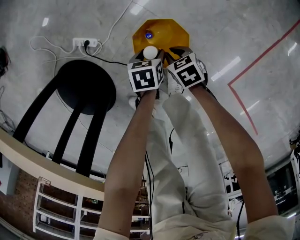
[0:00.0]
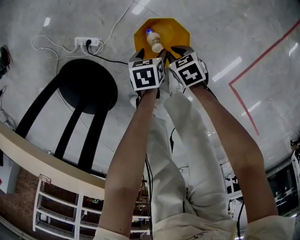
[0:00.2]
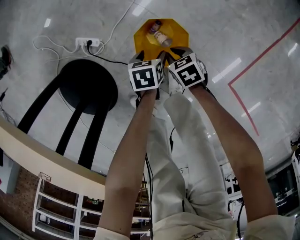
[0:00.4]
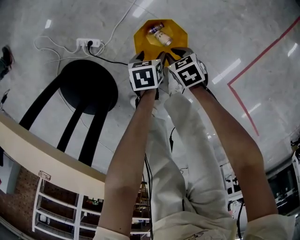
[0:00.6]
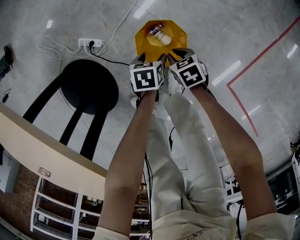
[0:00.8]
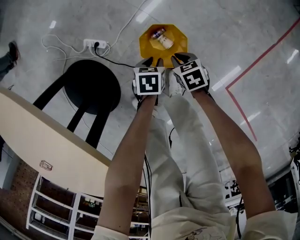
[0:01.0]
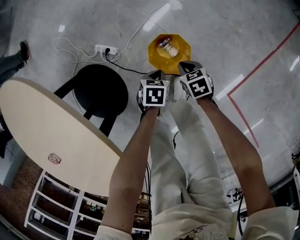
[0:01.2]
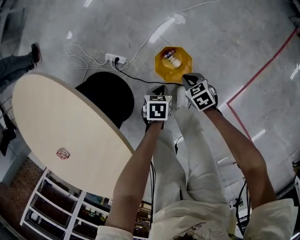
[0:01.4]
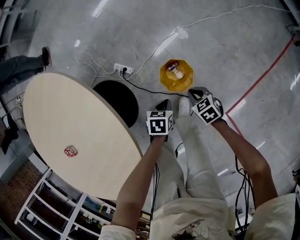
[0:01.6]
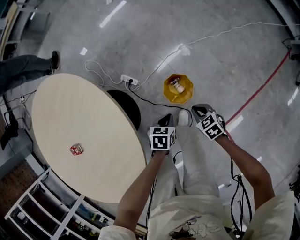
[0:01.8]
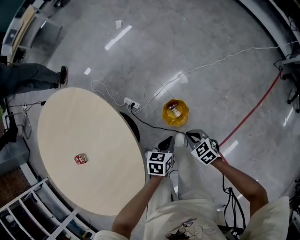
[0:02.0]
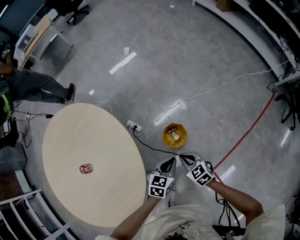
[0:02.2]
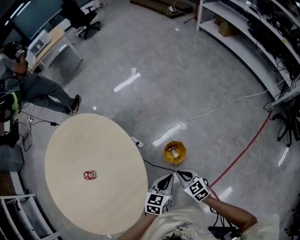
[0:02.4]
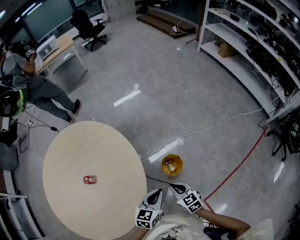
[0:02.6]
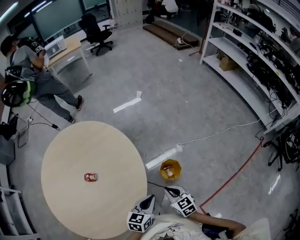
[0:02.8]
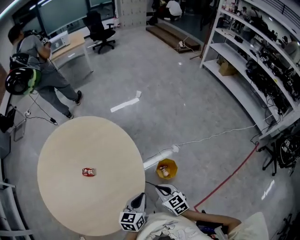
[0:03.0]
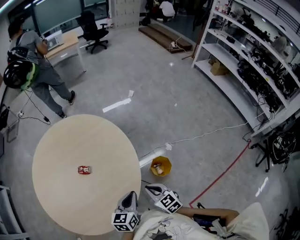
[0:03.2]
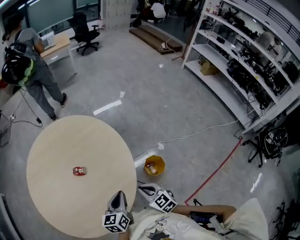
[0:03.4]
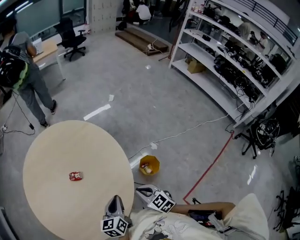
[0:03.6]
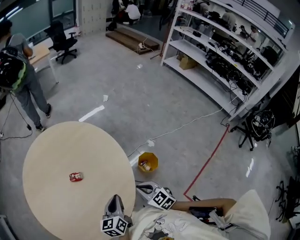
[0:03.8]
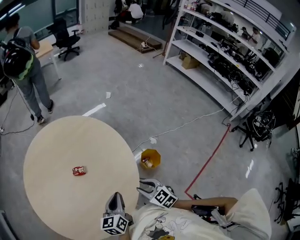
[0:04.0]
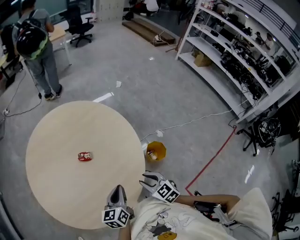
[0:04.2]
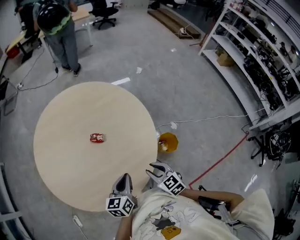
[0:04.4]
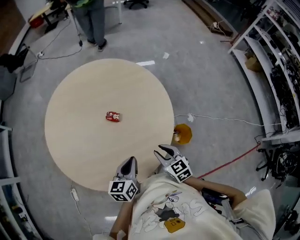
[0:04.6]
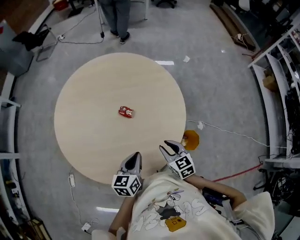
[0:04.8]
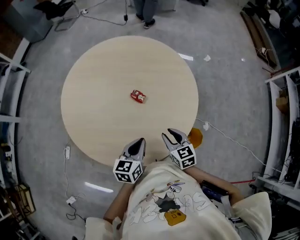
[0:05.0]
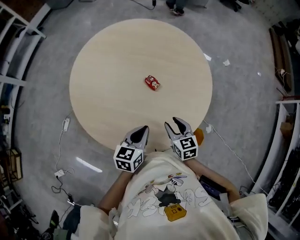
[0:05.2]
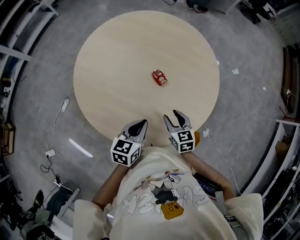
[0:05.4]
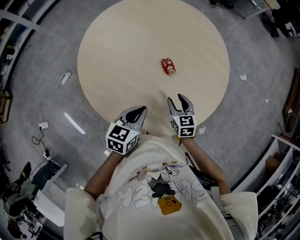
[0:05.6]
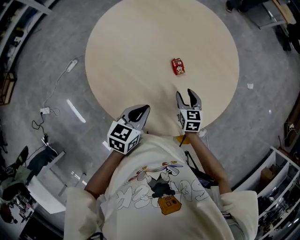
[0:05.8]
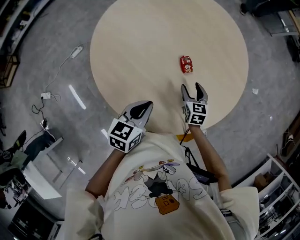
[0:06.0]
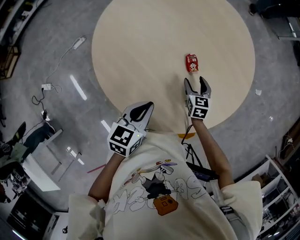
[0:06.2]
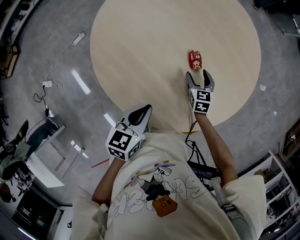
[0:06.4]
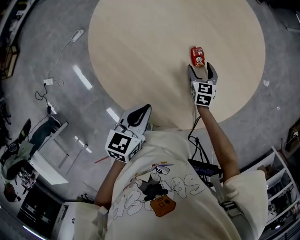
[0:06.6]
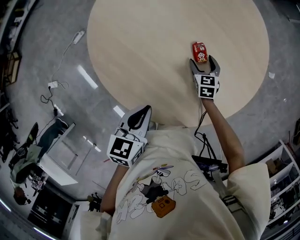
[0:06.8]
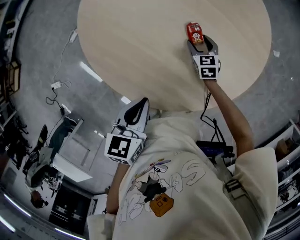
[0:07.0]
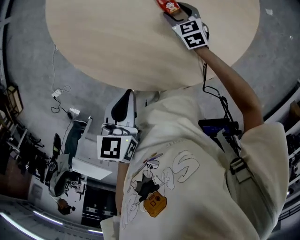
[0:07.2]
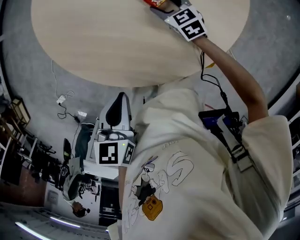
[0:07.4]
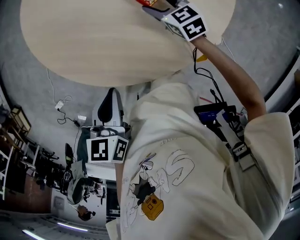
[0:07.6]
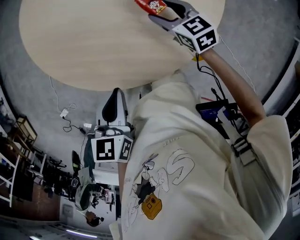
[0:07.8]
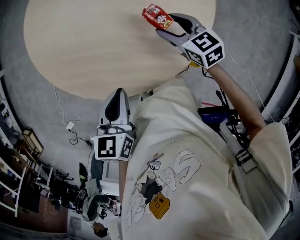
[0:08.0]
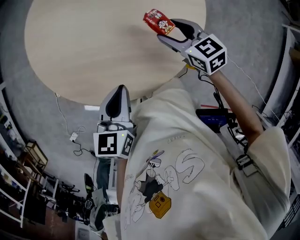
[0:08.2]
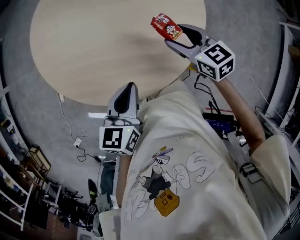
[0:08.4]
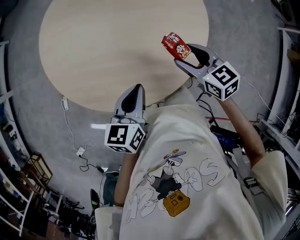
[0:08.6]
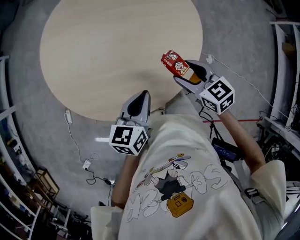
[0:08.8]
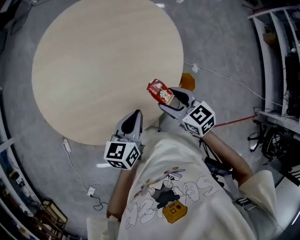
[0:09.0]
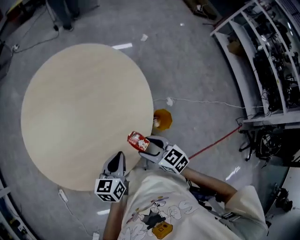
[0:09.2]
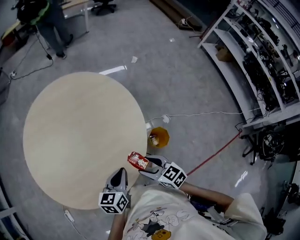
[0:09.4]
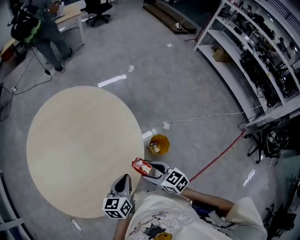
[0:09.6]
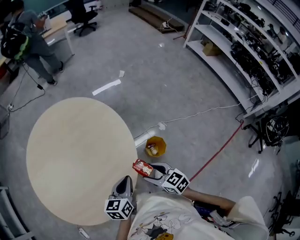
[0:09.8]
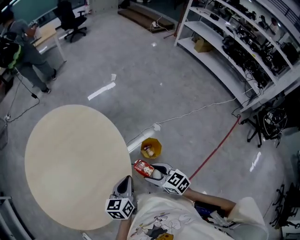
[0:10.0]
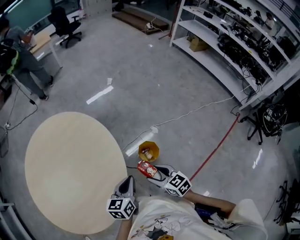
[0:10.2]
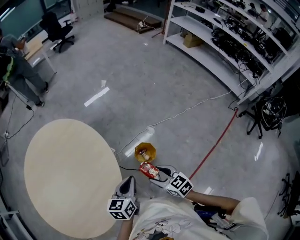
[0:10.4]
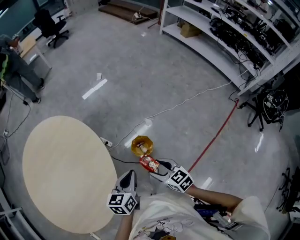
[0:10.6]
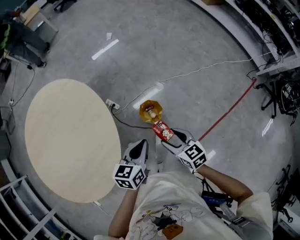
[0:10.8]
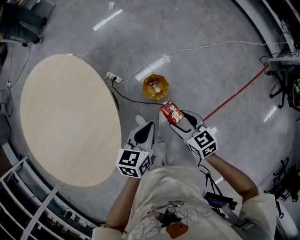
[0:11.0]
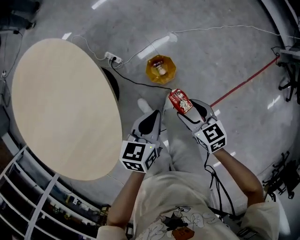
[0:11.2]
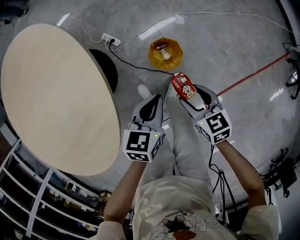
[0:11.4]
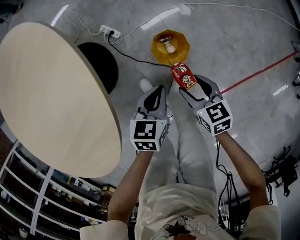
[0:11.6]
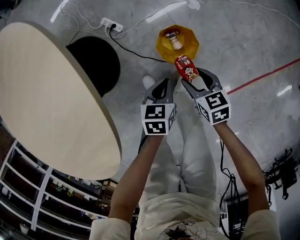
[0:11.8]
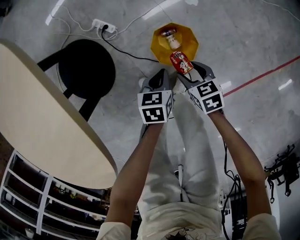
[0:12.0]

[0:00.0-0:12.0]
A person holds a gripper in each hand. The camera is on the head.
0:00.0 to 0:01.6: The grippers both shift upward by some 25 cm. The left gripper closes up.
0:01.6 to 0:03.0: The right gripper shifts approximately 50 cm upward and to the left, and rotates about 30 degrees. Meanwhile the left gripper shifts approximately 40 cm upward, and angles its fingers upward, by approximately 40 degrees.
0:03.0 to 0:04.4: The right gripper heads to the left and backward, covering roughly 15 cm. The left gripper is displaced to the left by about 20 cm.
0:04.4 to 0:06.0: The left gripper shifts by some 10 cm, and changes its angle by roughly 50 degrees, while the right gripper ends up about 30 cm from where it was, and turns by approximately 40 degrees.
0:06.0 to 0:07.6: The right gripper travels downward and back again, about 10 cm each way.
0:07.6 to 0:09.0: The right gripper ends up some 25 cm from where it was, and turns by approximately 30 degrees. Meanwhile the left gripper changes place by some 5 cm, and turns by about 40 degrees.
0:09.0 to 0:10.4: The left gripper ends up some 35 cm from where it was, and turns by roughly 30 degrees. Meanwhile the right gripper travels upward and back again, some 10 cm each way, and turns by roughly 30 degrees.
0:10.4 to 0:12.0: Both grippers move downward, roughly 50 cm. The right gripper swivels about 30 degrees. Meanwhile the left gripper points its fingers roughly 30 degrees further downward.

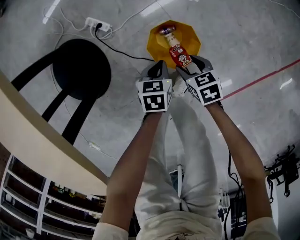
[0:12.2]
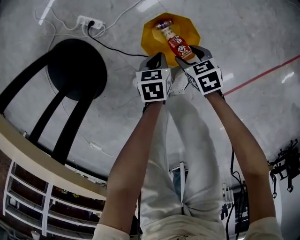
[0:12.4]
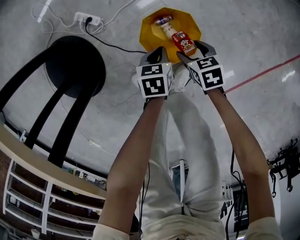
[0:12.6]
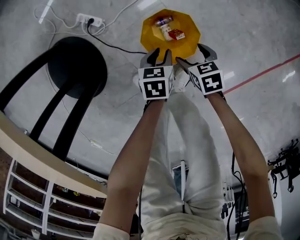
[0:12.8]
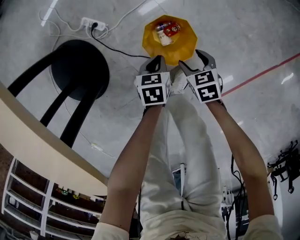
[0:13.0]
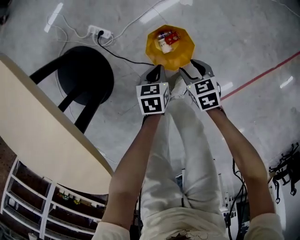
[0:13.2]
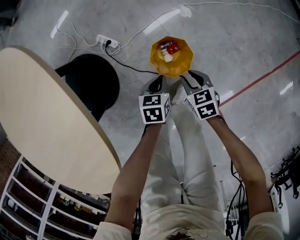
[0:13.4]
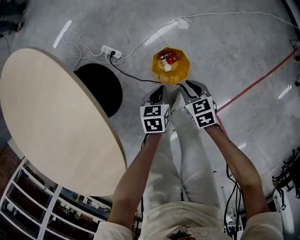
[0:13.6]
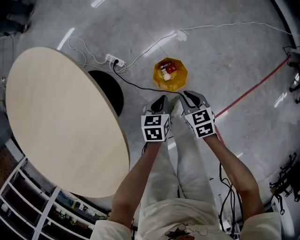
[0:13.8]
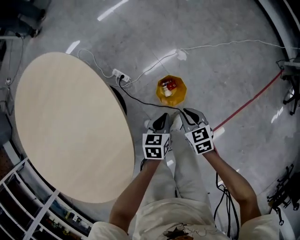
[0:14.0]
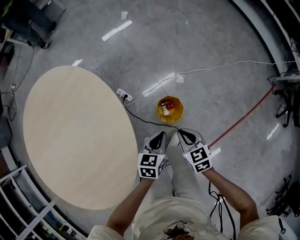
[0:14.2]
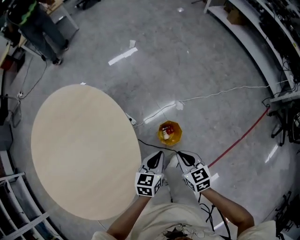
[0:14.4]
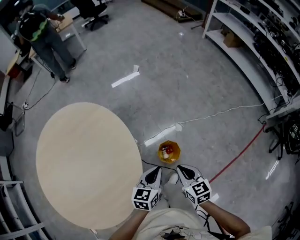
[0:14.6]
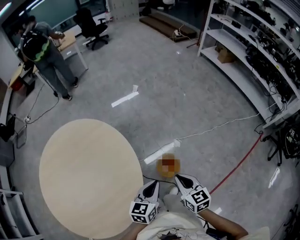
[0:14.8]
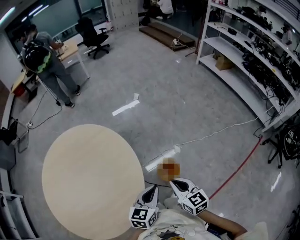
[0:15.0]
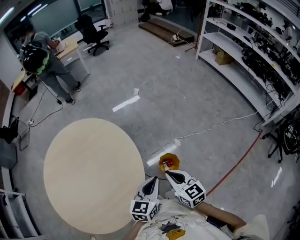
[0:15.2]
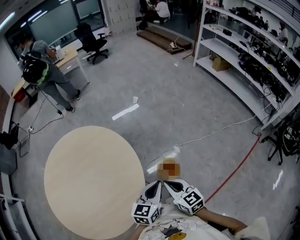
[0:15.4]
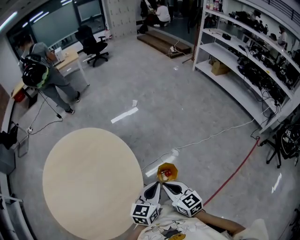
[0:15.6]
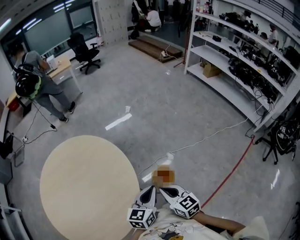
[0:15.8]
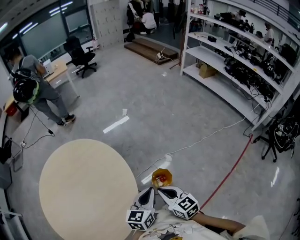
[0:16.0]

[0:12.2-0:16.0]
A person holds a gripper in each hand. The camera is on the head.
0:12.2 to 0:13.4: The grippers both shift upward by some 10 cm. The left gripper opens, then closes again.
0:13.4 to 0:14.8: Both grippers travel together upward, about 50 cm. The left gripper tips its fingers upward by about 30 degrees. The right gripper angles its fingers upward, by roughly 30 degrees.
0:14.8 to 0:16.0: The left gripper travels upward by roughly 5 cm, while the right gripper heads to the left and backward, covering about 10 cm.

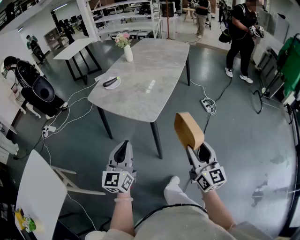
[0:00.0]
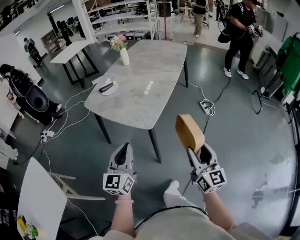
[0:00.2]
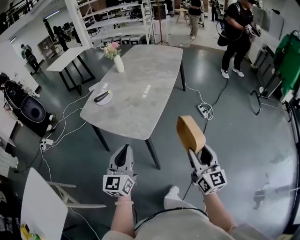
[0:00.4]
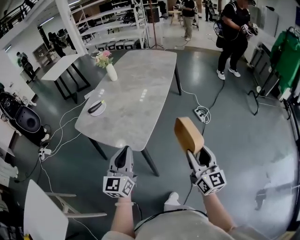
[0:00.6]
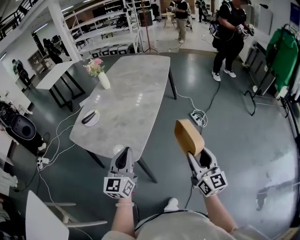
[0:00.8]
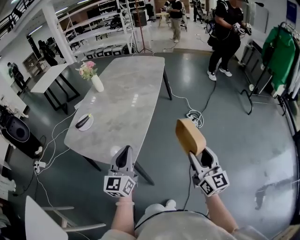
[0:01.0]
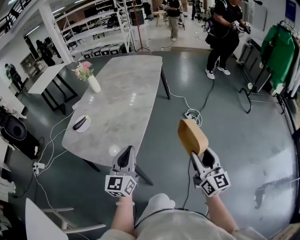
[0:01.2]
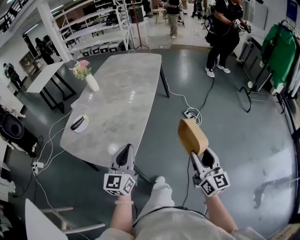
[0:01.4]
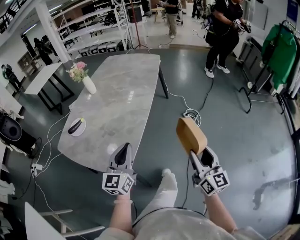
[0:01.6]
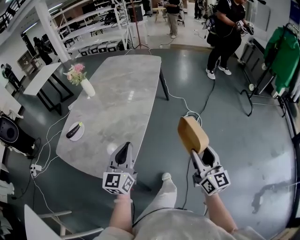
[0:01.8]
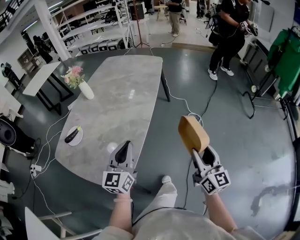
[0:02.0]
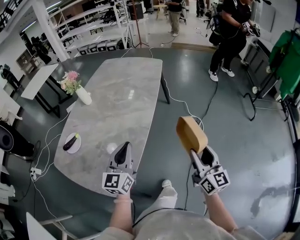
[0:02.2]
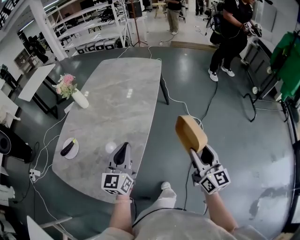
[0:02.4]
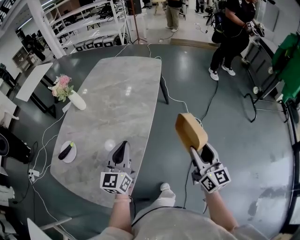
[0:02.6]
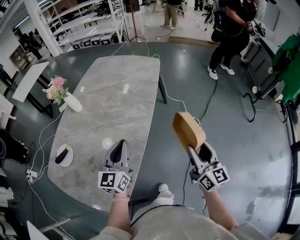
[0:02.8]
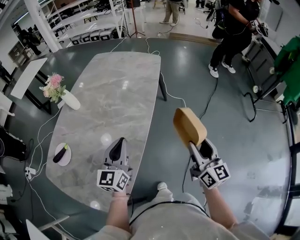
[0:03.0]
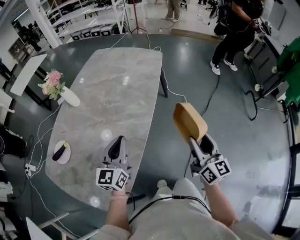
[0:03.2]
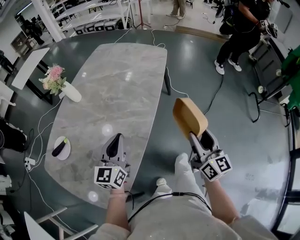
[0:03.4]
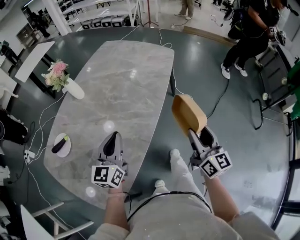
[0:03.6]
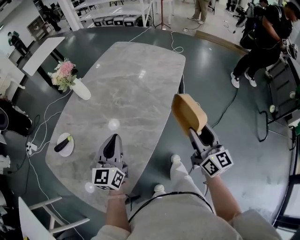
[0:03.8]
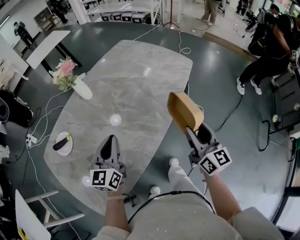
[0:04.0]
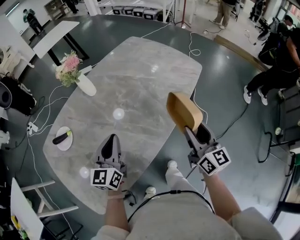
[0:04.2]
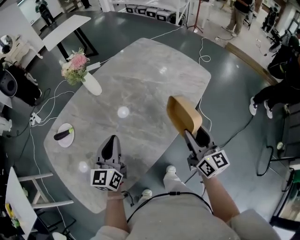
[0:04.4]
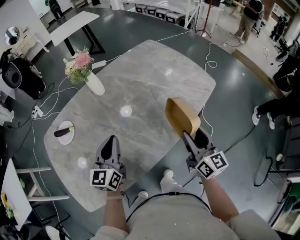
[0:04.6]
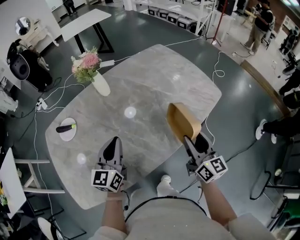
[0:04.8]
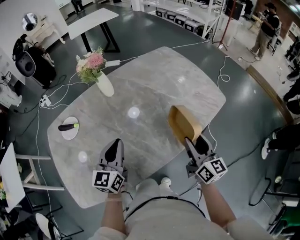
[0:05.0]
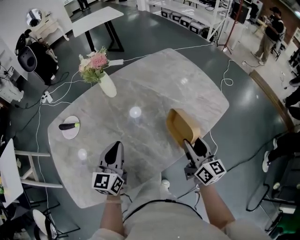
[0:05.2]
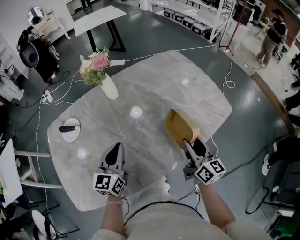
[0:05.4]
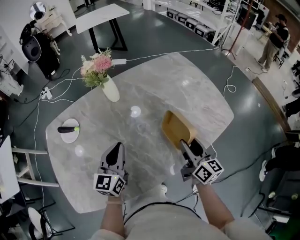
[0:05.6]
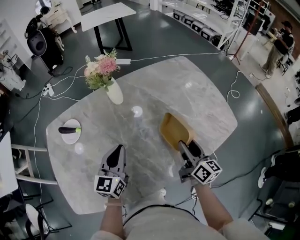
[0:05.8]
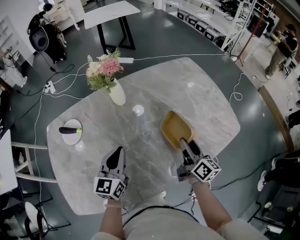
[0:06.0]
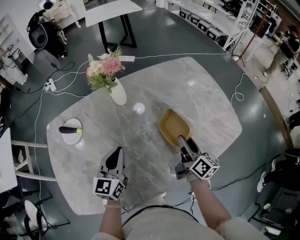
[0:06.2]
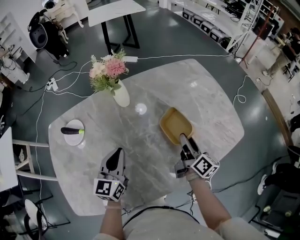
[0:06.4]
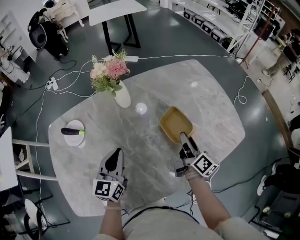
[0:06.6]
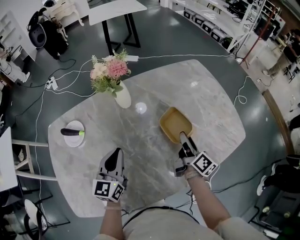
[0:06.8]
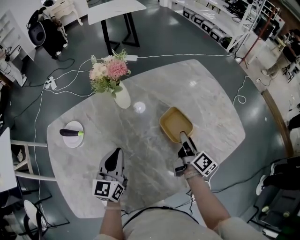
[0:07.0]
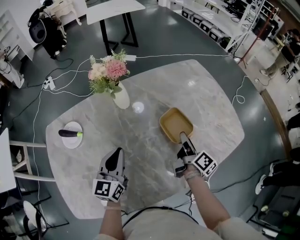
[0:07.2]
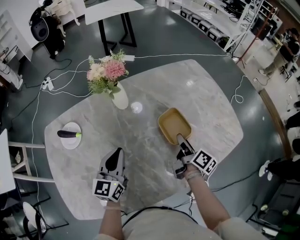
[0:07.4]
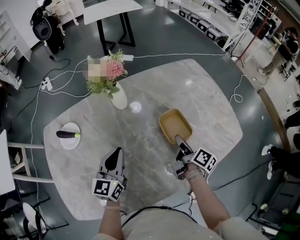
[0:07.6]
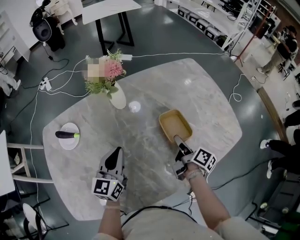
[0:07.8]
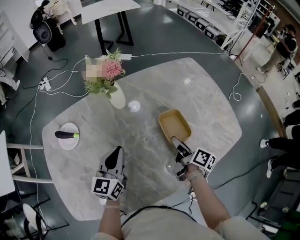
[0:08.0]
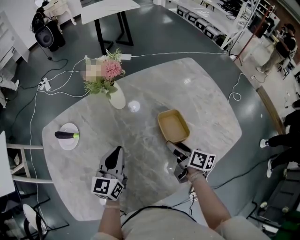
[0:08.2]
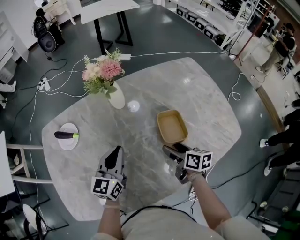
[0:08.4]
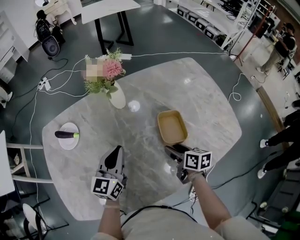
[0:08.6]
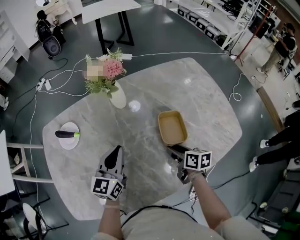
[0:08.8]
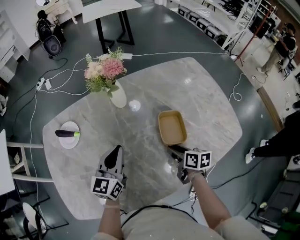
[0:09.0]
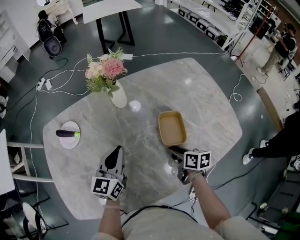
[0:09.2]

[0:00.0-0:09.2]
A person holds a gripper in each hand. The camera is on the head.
0:00.0 to 0:01.6: The two grippers go roughly 30 cm forward and to the right.
0:01.6 to 0:03.0: Both grippers move forward, some 25 cm.
0:03.0 to 0:04.6: The left gripper ends up some 15 cm from where it was, and swivels some 40 degrees; the right gripper shifts by approximately 30 cm, and rotates about 40 degrees.
0:04.6 to 0:06.2: The left gripper moves forward, approximately 10 cm, while the right gripper shifts roughly 20 cm forward and downward, and changes its angle by roughly 30 degrees.
0:06.2 to 0:07.6: The right gripper moves downward, some 5 cm, and changes its angle by approximately 30 degrees.
0:07.6 to 0:09.2: The right gripper is displaced to the left by roughly 5 cm, changes its angle by approximately 40 degrees, and closes.
